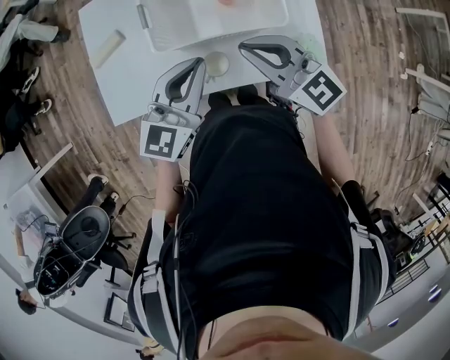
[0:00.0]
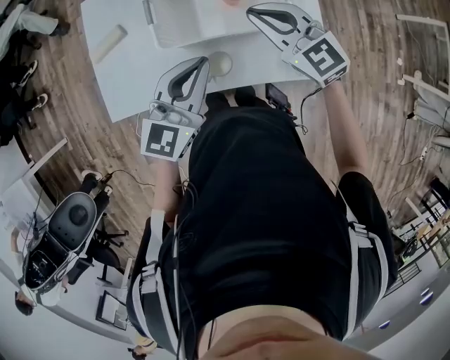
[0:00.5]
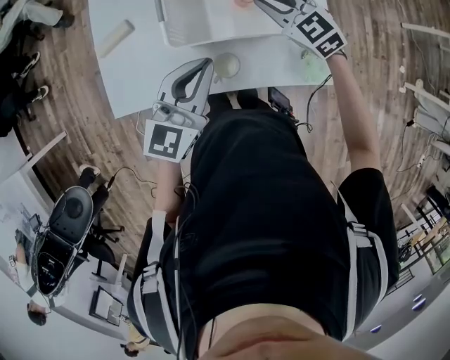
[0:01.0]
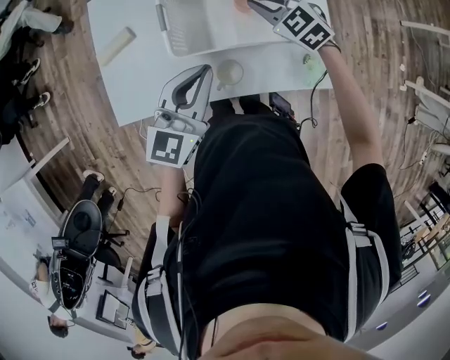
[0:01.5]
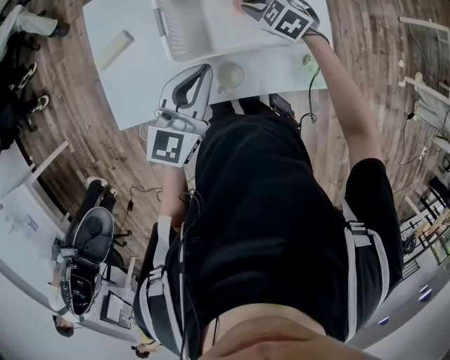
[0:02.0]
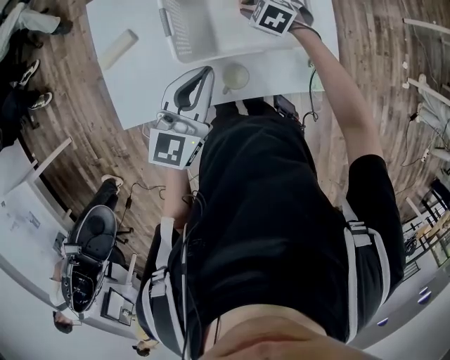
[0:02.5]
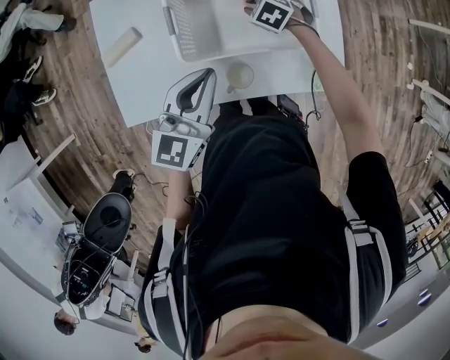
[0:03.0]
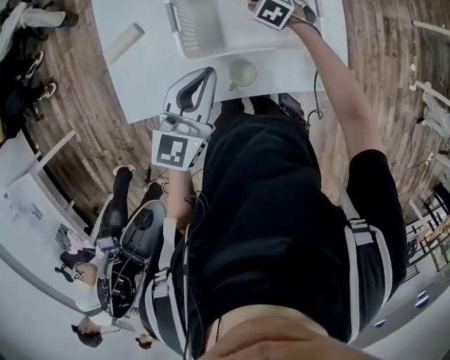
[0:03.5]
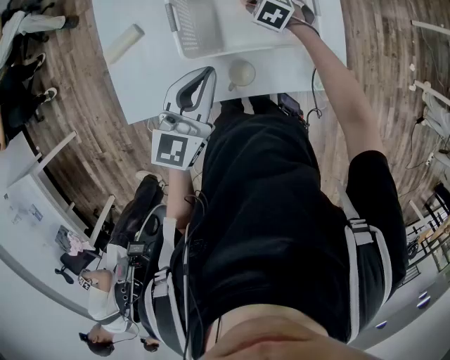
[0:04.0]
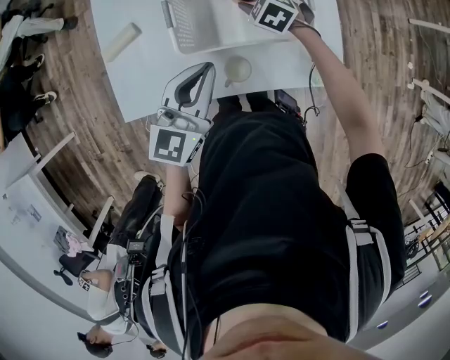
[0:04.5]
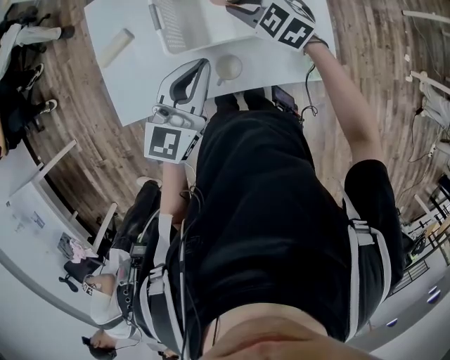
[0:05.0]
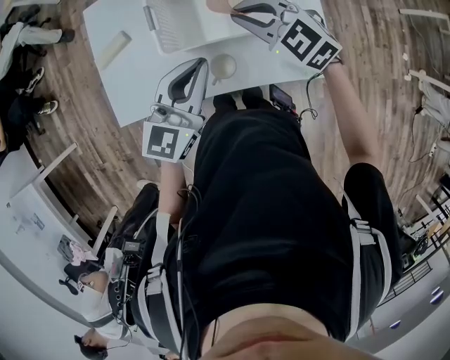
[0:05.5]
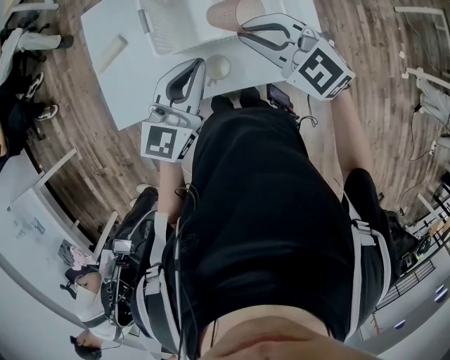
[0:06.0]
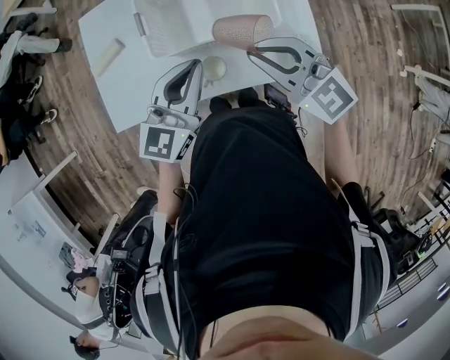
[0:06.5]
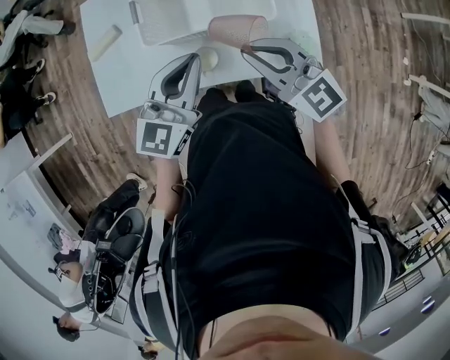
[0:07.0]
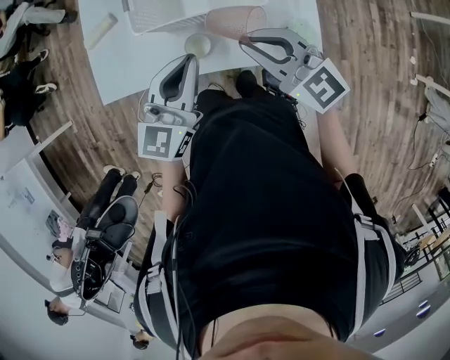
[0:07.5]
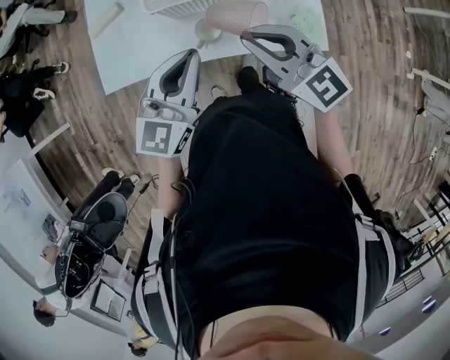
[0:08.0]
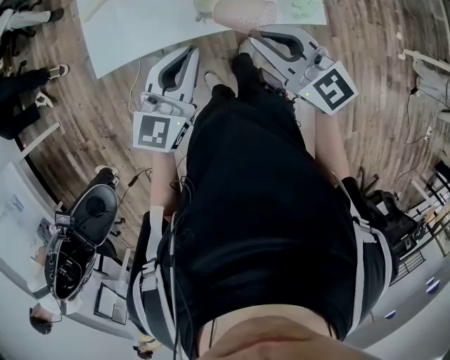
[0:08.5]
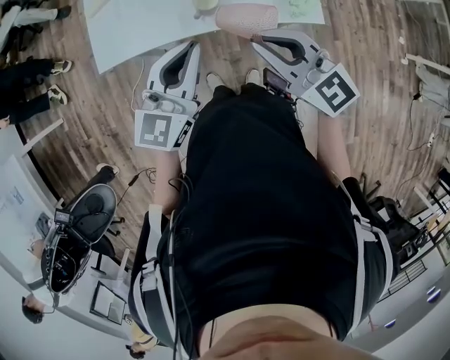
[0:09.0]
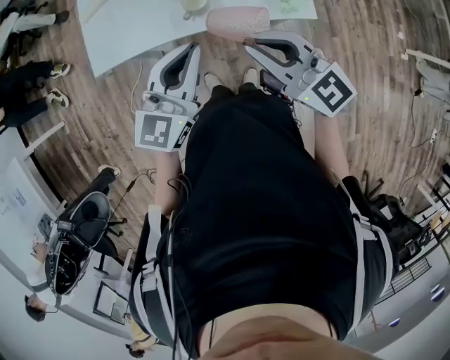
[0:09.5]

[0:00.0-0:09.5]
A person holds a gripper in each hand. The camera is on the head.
0:00.0 to 0:02.0: The left gripper moves roughly 5 cm. The right gripper heads forward and downward, covering roughly 25 cm, and points its fingers some 50 degrees further downward.
0:02.0 to 0:04.0: The right gripper is displaced downward by approximately 5 cm.
0:04.0 to 0:05.5: The left gripper changes place by about 5 cm, while the right gripper shifts some 25 cm upward and backward, and tilts its fingers approximately 30 degrees upward.
0:05.5 to 0:07.5: The left gripper is displaced backward and to the right by approximately 10 cm. The right gripper shifts about 15 cm backward and to the right, and rotates approximately 30 degrees.
0:07.5 to 0:09.5: Both grippers move backward, roughly 20 cm.

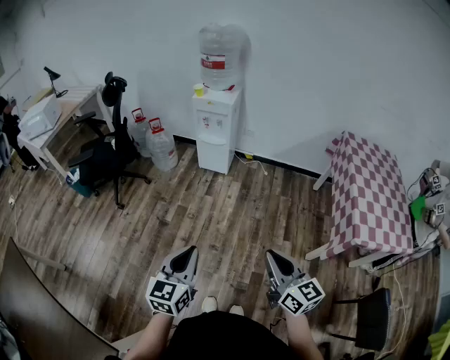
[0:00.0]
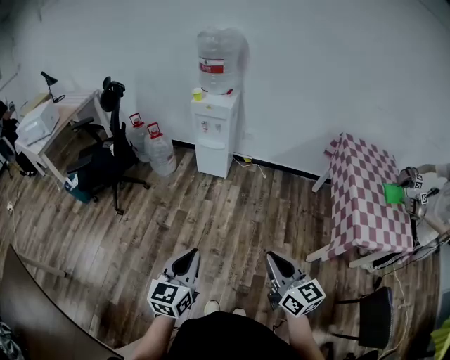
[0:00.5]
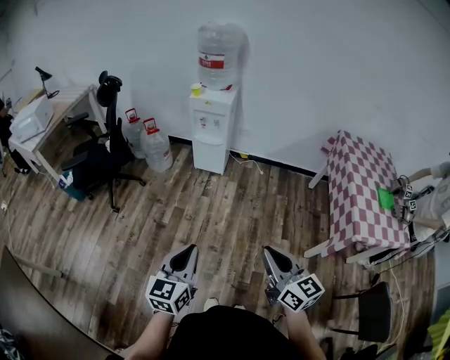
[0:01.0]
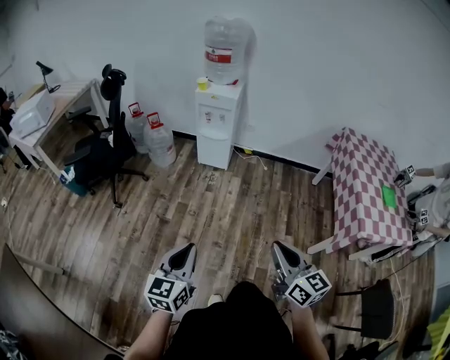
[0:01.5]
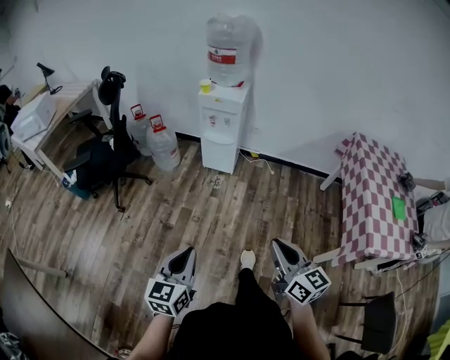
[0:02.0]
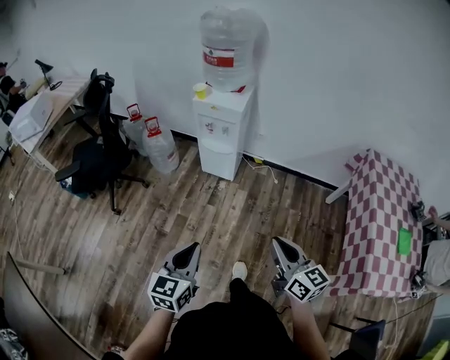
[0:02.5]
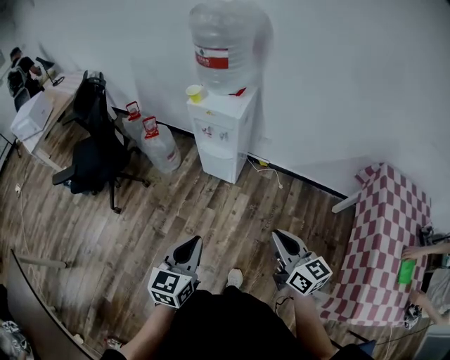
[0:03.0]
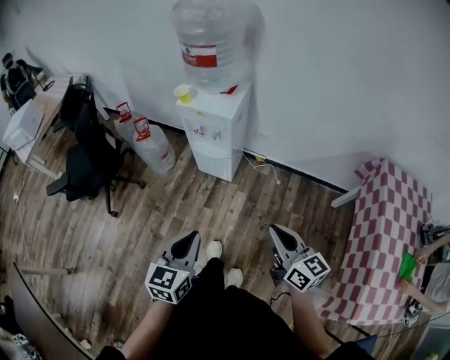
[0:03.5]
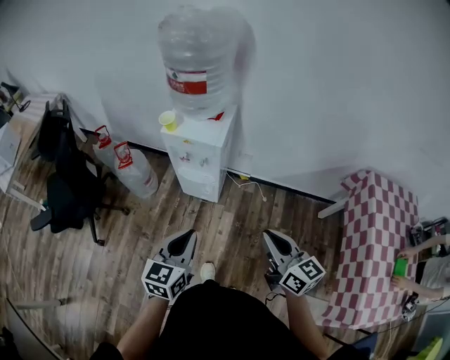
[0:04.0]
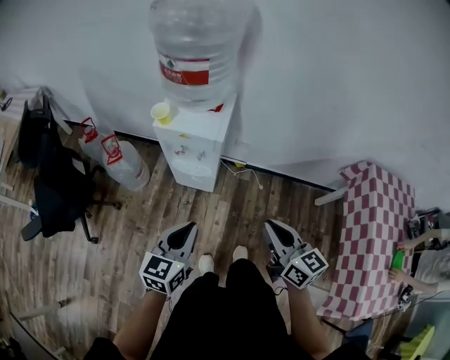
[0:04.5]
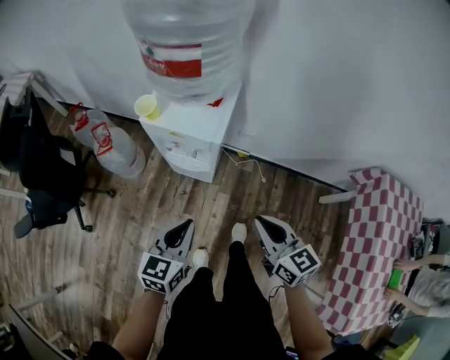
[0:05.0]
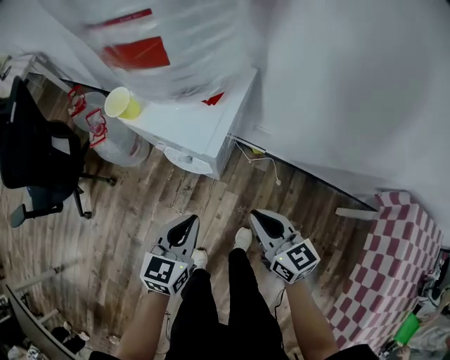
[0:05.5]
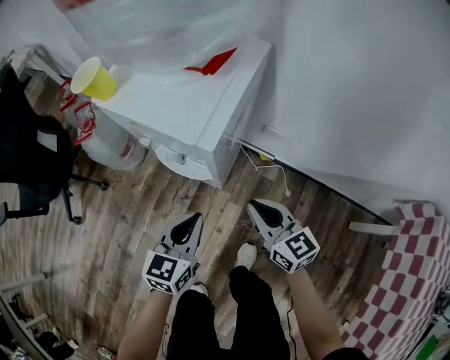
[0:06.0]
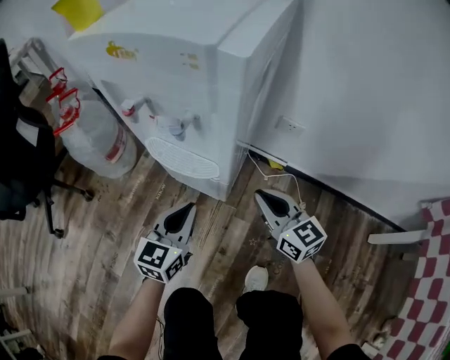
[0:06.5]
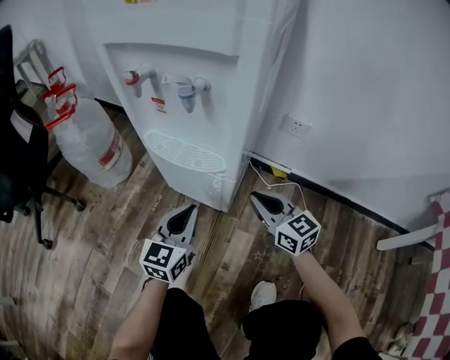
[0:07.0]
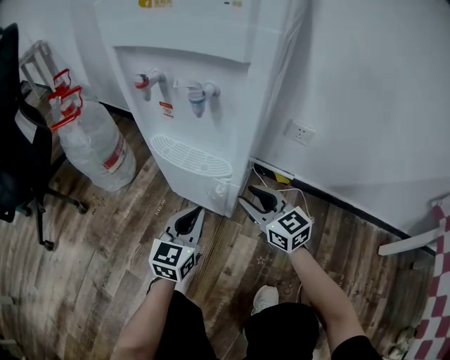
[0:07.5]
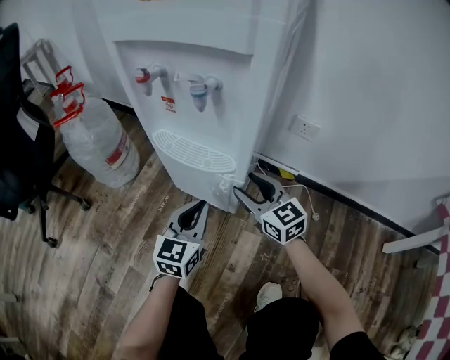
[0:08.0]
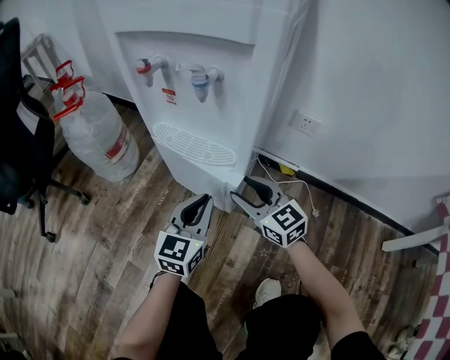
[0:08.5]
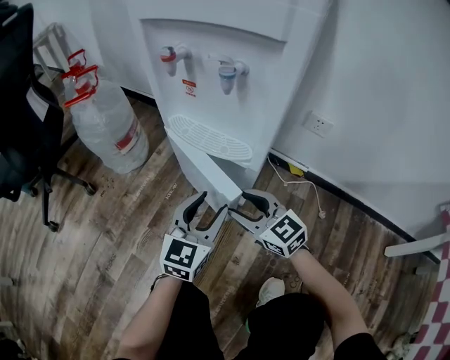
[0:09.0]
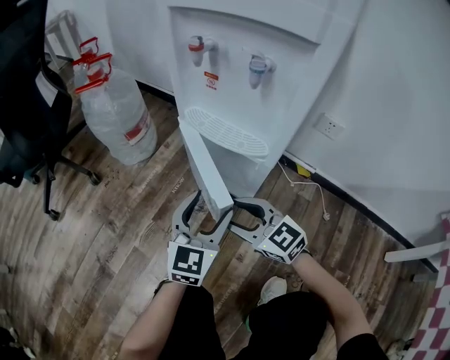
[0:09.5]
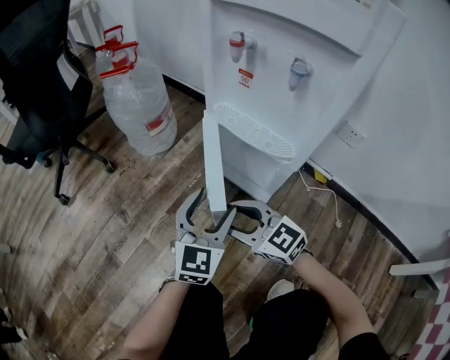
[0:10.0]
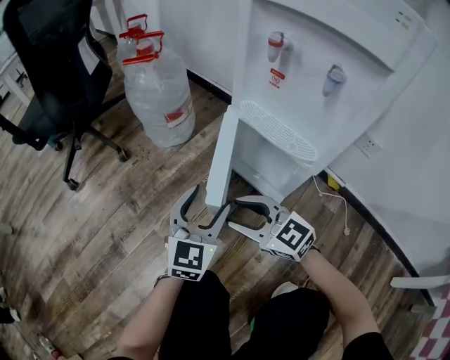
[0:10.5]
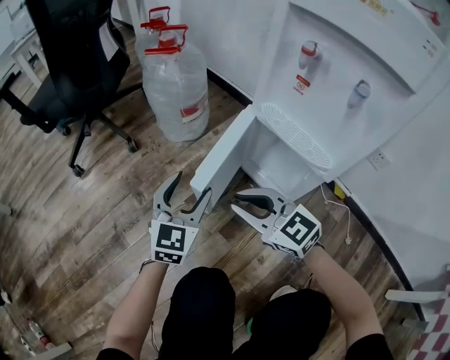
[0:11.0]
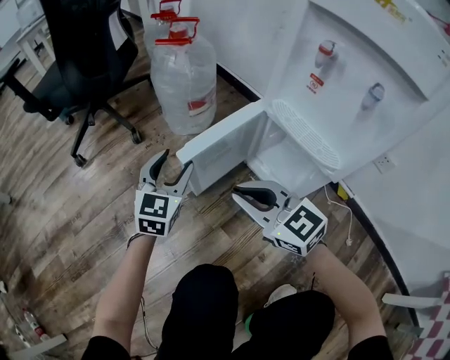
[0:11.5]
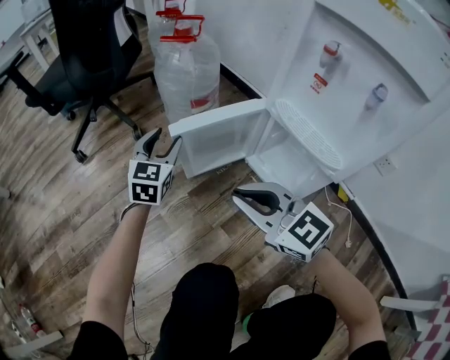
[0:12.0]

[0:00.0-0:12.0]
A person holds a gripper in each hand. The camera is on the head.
0:00.0 to 0:02.0: The left gripper is displaced forward and to the left by about 10 cm, while the right gripper travels forward by about 10 cm.
0:02.0 to 0:04.0: The pair of grippers is taken forward, roughly 50 cm.
0:04.0 to 0:06.0: The grippers both shift downward and forward by some 40 cm. The right gripper turns by about 20 degrees.
0:06.0 to 0:08.0: The grippers both shift downward by approximately 25 cm. The right gripper opens up.
0:08.0 to 0:10.0: The left gripper shifts by some 10 cm, and opens up, while the right gripper moves roughly 20 cm, and rotates about 40 degrees.
0:10.0 to 0:12.0: The right gripper goes roughly 10 cm upward and to the left, and closes its fingers. Meanwhile the left gripper is displaced forward and to the left by about 30 cm, and rotates roughly 20 degrees.

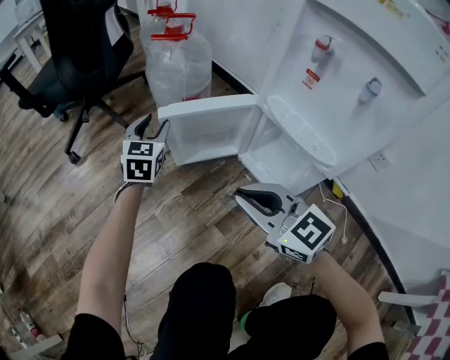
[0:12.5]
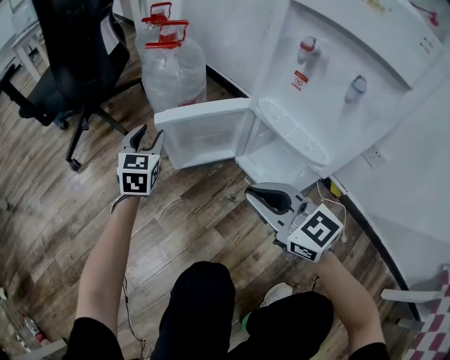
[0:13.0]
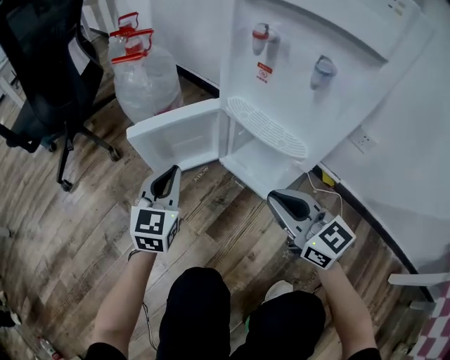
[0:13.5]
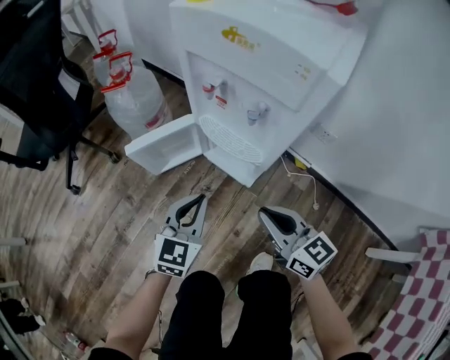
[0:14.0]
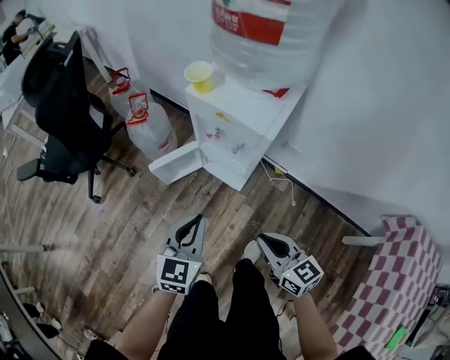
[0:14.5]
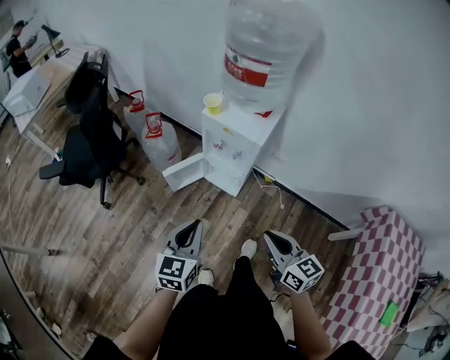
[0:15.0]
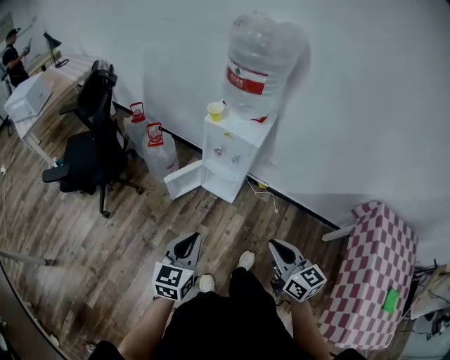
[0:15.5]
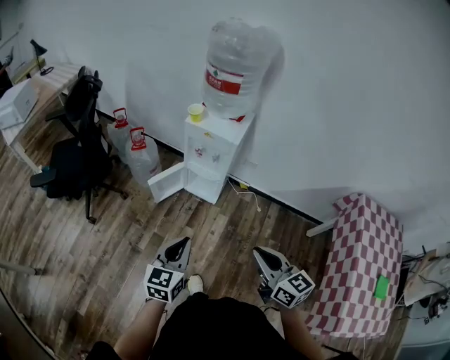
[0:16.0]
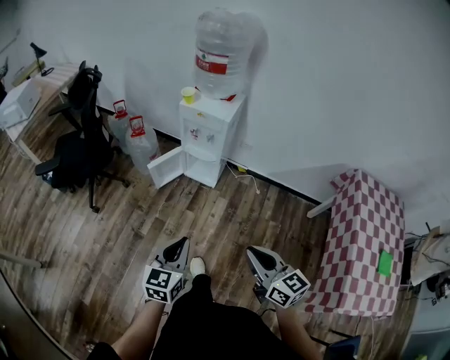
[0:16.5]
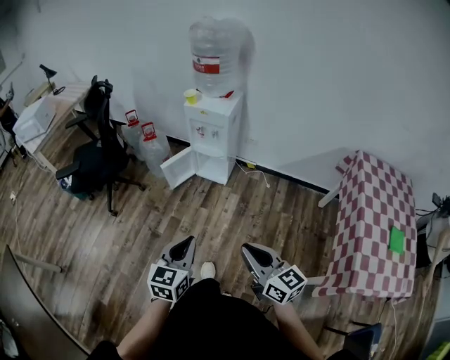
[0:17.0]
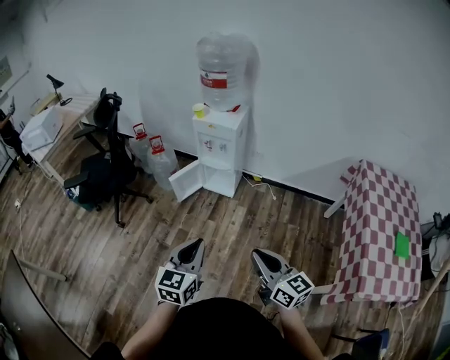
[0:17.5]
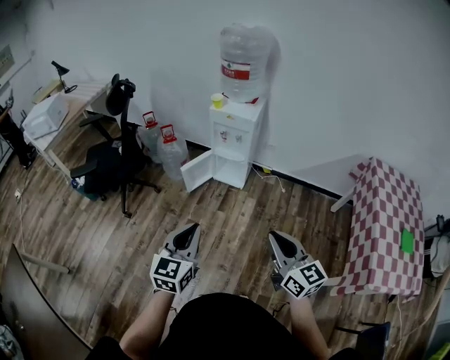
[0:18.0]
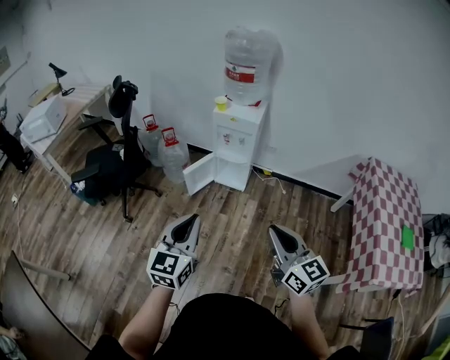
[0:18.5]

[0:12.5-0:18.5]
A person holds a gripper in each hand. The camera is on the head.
0:12.5 to 0:14.5: The two grippers go about 35 cm upward. The right gripper changes its angle by some 40 degrees. The left gripper swivels about 30 degrees, and closes up.
0:14.5 to 0:16.5: Both grippers move backward and upward, approximately 40 cm.
0:16.5 to 0:18.5: The right gripper travels to the left, upward and backward by about 15 cm; the left gripper moves to the left and upward, approximately 20 cm.
